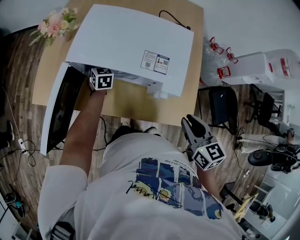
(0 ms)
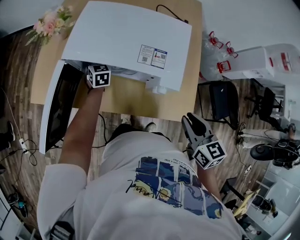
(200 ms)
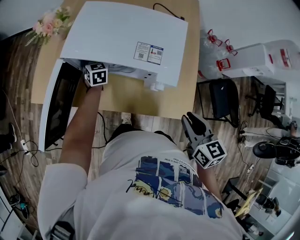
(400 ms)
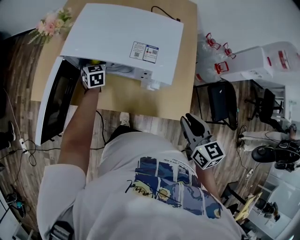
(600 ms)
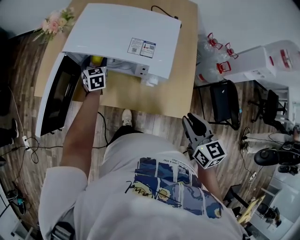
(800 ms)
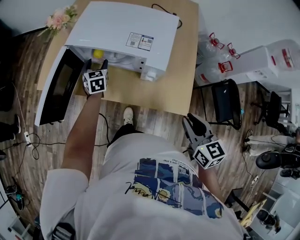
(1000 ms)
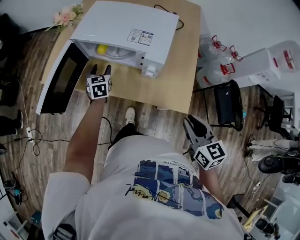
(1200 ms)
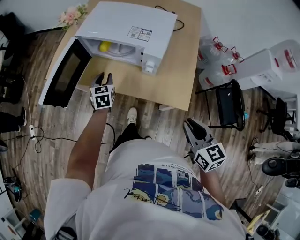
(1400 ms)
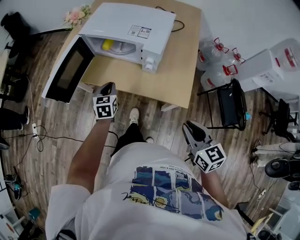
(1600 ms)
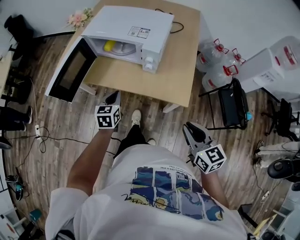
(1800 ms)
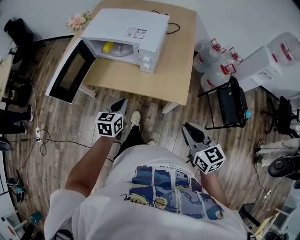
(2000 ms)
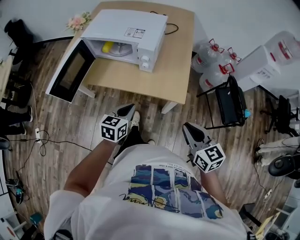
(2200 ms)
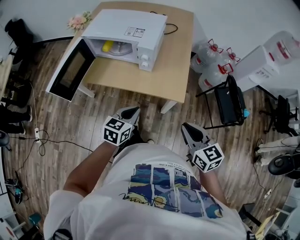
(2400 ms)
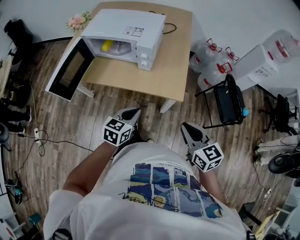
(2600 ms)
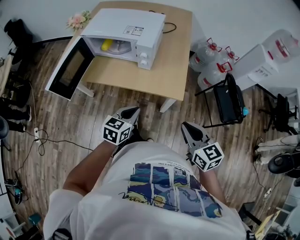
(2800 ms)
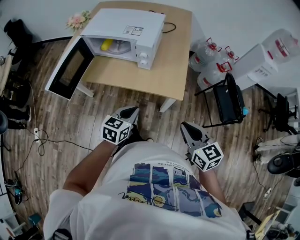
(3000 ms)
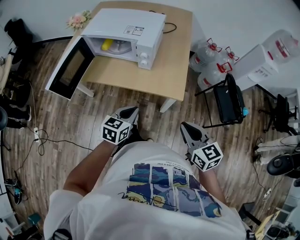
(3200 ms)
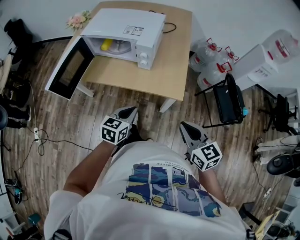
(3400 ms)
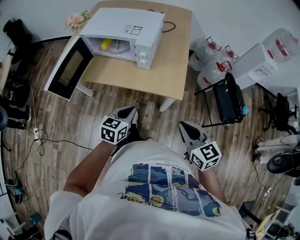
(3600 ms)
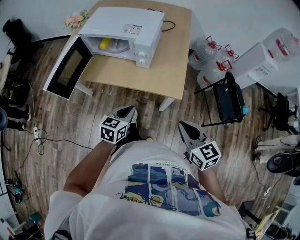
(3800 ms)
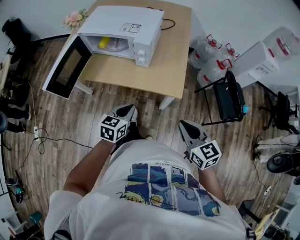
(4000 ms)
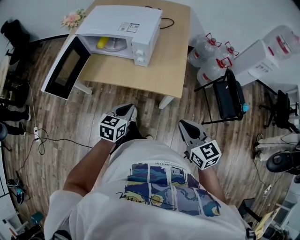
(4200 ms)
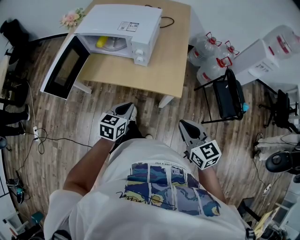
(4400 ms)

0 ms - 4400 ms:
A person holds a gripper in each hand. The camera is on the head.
0 ms - 1400 ms: Both grippers travel together backward, some 20 cm. The left gripper closes.
1400 ms - 3000 ms: The right gripper shifts about 10 cm backward; the left gripper moves backward and to the right, about 30 cm, swivels some 40 degrees, and closes up.
3000 ms - 4400 ms: The grippers make only small movements.

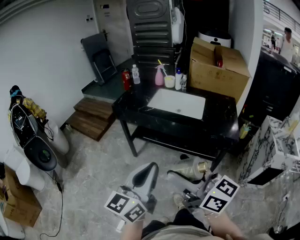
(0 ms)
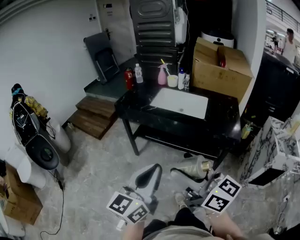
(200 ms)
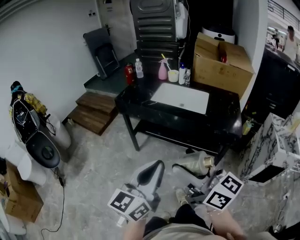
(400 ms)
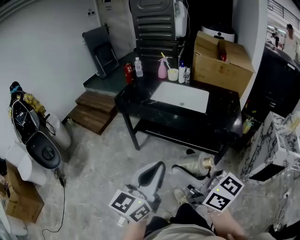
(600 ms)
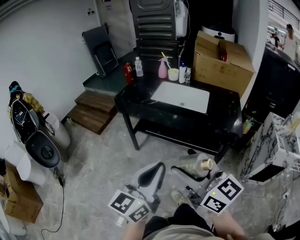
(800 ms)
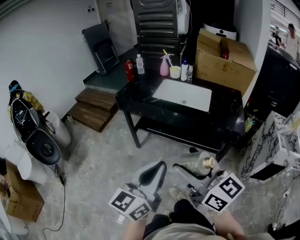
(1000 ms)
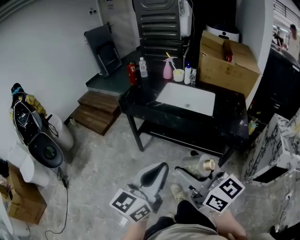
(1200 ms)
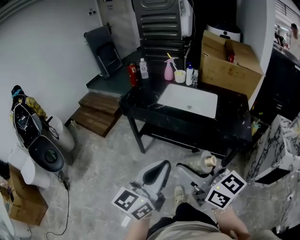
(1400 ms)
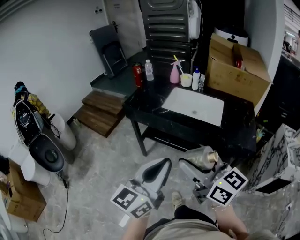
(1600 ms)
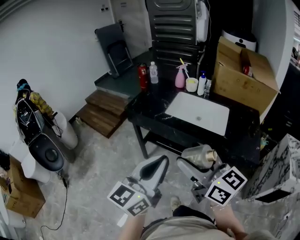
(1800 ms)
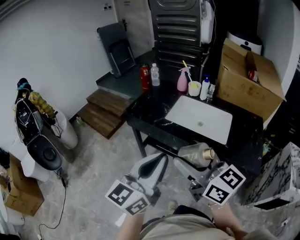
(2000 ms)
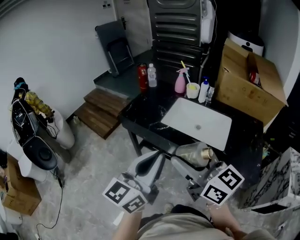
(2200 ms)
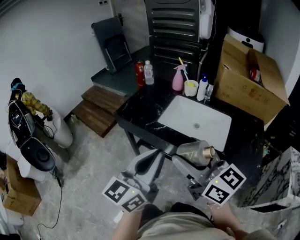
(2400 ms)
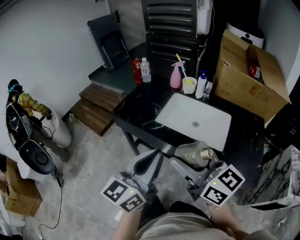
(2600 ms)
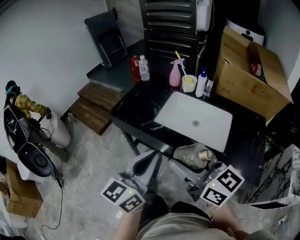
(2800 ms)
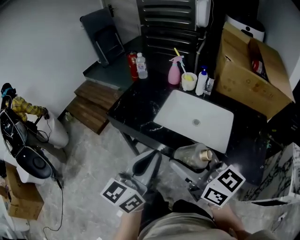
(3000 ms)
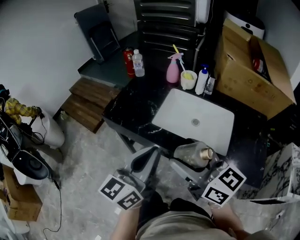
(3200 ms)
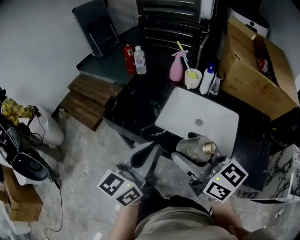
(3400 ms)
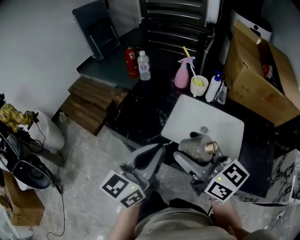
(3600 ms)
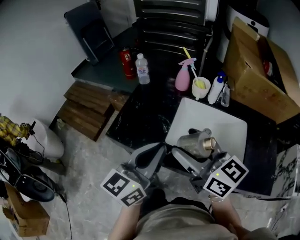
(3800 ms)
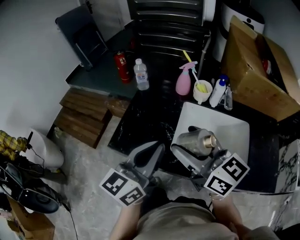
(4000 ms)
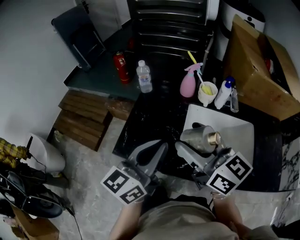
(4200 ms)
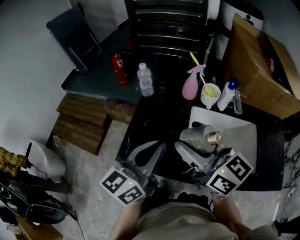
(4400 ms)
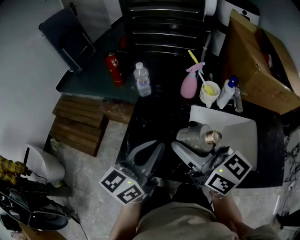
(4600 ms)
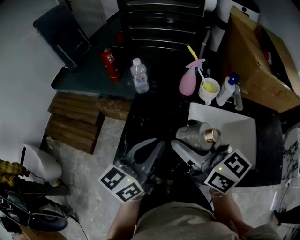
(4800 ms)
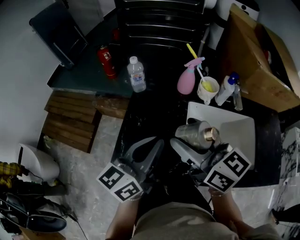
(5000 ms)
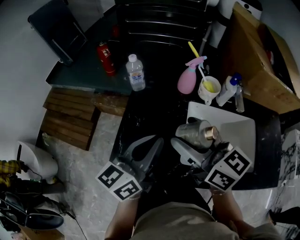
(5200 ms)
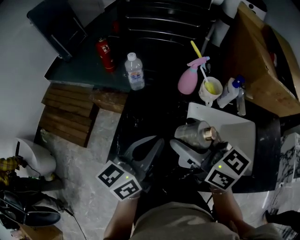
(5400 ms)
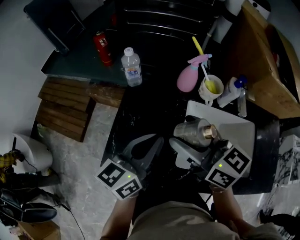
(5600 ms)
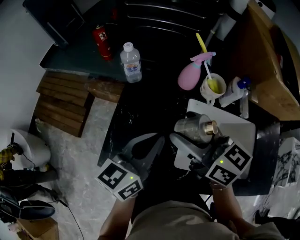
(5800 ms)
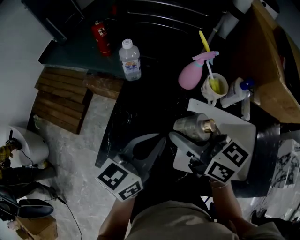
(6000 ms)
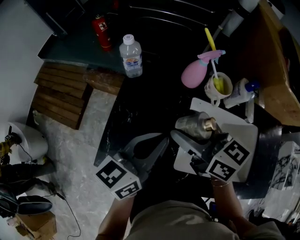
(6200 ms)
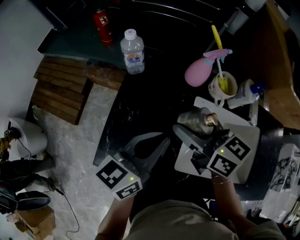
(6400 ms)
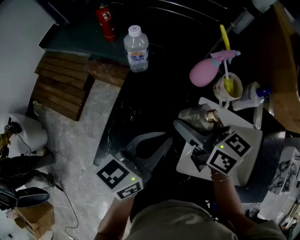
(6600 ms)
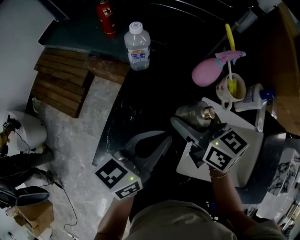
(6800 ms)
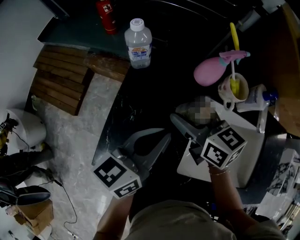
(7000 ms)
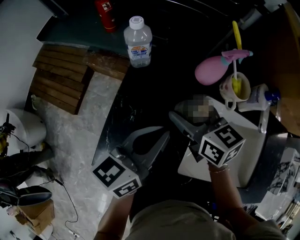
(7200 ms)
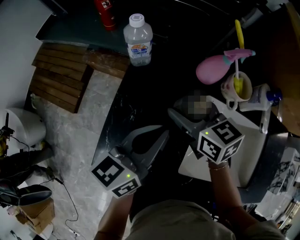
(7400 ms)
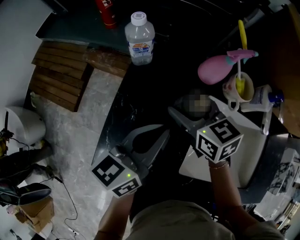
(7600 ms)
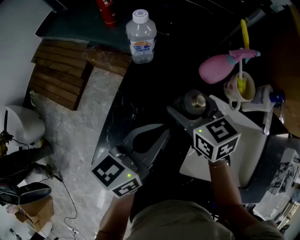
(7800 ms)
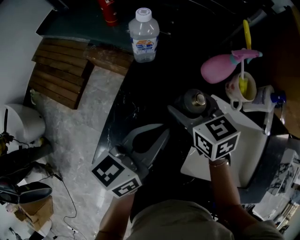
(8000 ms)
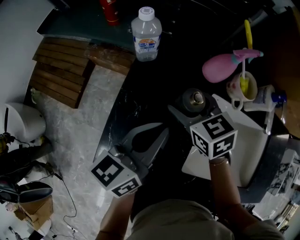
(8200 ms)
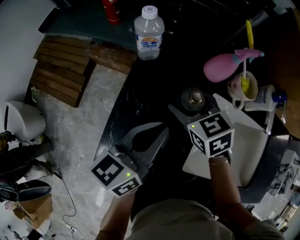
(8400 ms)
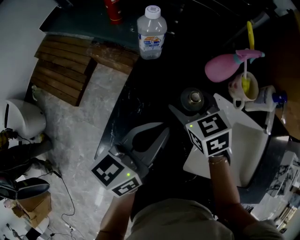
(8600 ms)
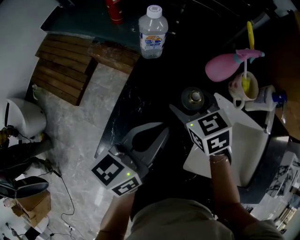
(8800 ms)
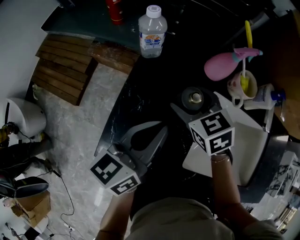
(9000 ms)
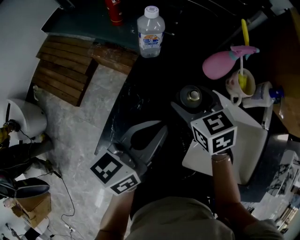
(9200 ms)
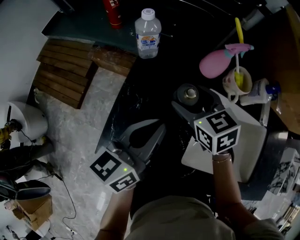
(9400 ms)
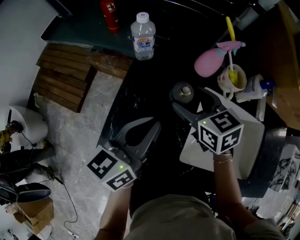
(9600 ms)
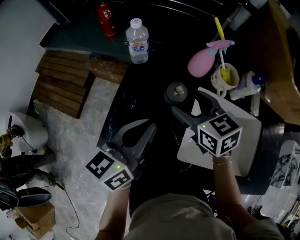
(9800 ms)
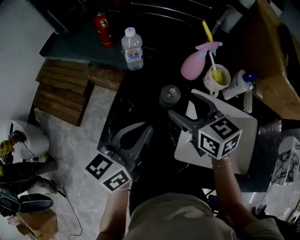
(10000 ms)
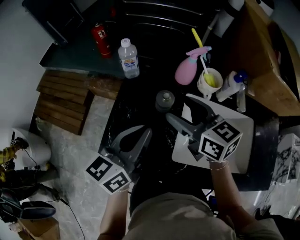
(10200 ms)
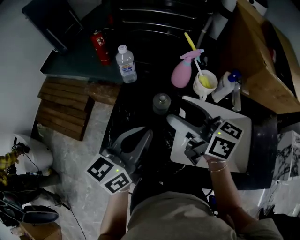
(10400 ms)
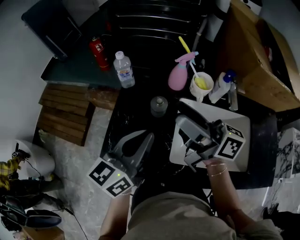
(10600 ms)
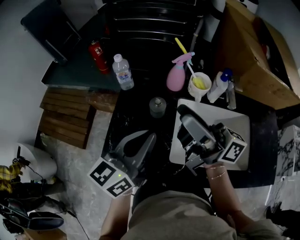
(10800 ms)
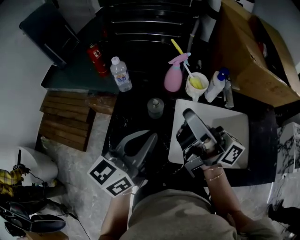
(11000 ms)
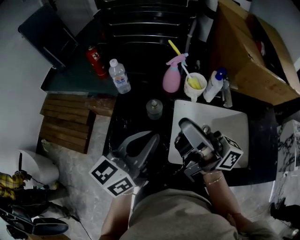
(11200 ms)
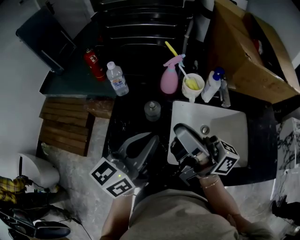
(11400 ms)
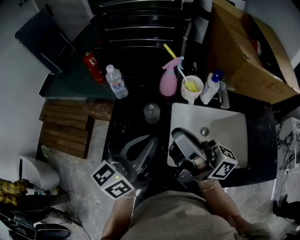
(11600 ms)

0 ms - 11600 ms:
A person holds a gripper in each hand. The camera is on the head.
0 ms - 1400 ms: The right gripper heads forward, covering approximately 10 cm.
1400 ms - 2800 ms: Both grippers move forward, approximately 30 cm.
2800 ms - 4400 ms: The two grippers go about 35 cm forward and to the left.
4400 ms - 5800 ms: The grippers both shift forward and downward by about 15 cm.
5800 ms - 7200 ms: The left gripper moves forward and downward, about 5 cm. The right gripper travels downward and forward by approximately 15 cm.
7200 ms - 8800 ms: The right gripper shifts roughly 5 cm downward, and turns by roughly 30 degrees.
8800 ms - 10200 ms: The left gripper shifts approximately 5 cm upward; the right gripper goes roughly 15 cm upward and backward, and turns by approximately 30 degrees.
10200 ms - 11600 ms: The right gripper moves upward and backward, about 15 cm, points its fingers about 50 degrees further upward, and closes, while the left gripper travels upward and to the right by approximately 5 cm.

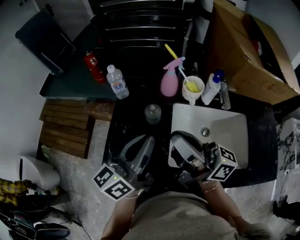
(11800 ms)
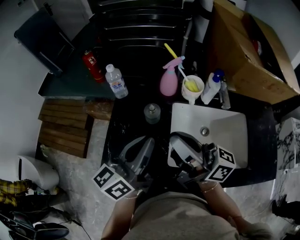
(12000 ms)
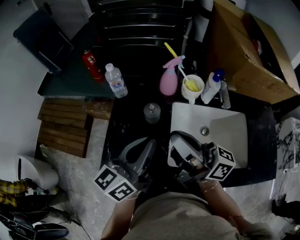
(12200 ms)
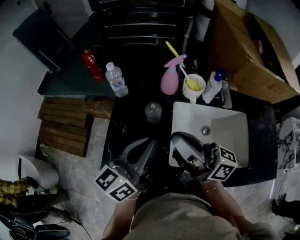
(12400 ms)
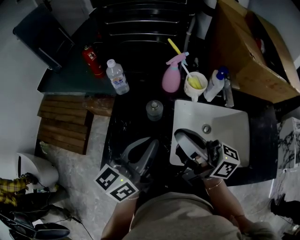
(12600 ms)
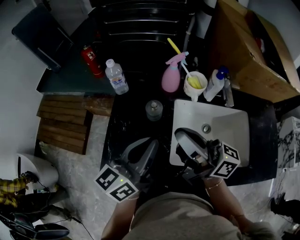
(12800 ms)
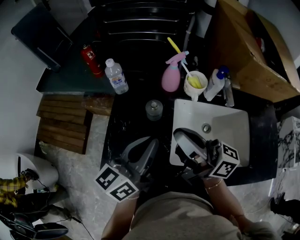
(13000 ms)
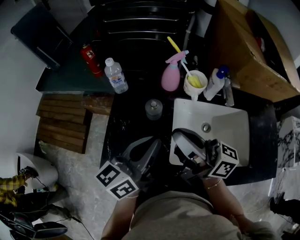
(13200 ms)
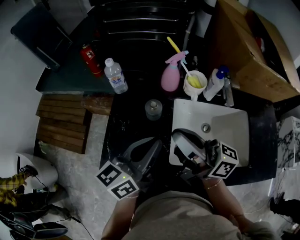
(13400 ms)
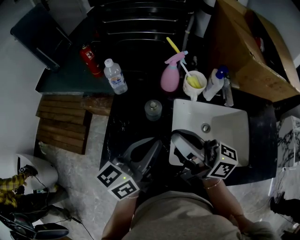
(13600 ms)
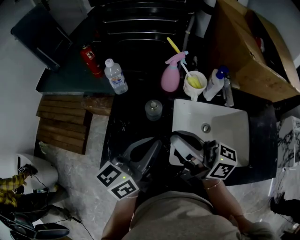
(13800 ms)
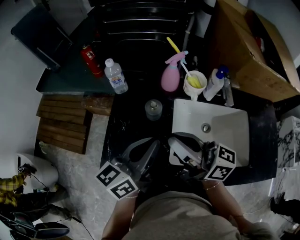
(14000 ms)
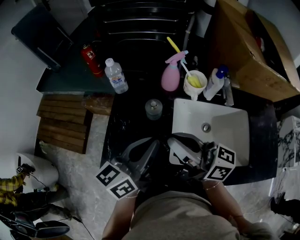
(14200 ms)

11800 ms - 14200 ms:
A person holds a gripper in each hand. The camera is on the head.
11800 ms - 14200 ms: The grippers stay close to where they were, moving slightly.

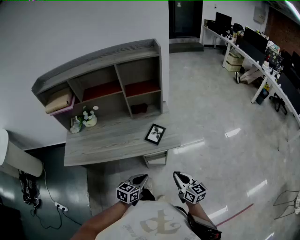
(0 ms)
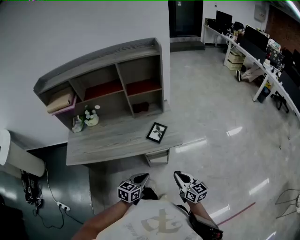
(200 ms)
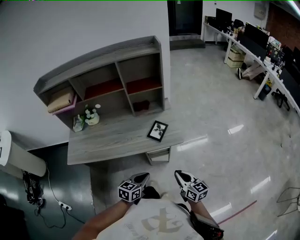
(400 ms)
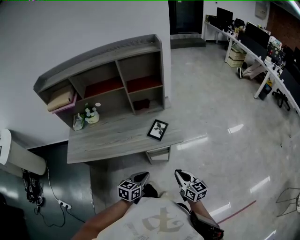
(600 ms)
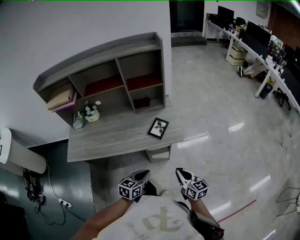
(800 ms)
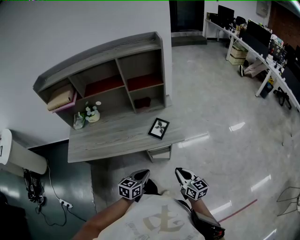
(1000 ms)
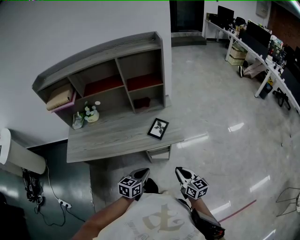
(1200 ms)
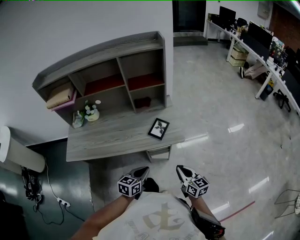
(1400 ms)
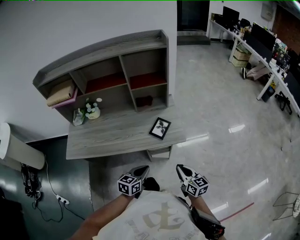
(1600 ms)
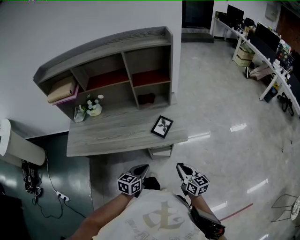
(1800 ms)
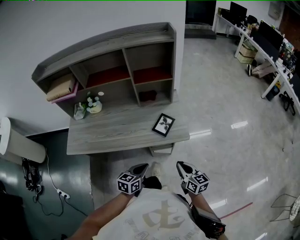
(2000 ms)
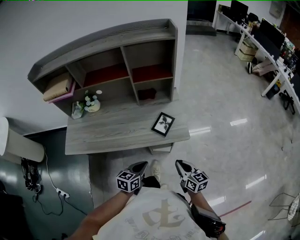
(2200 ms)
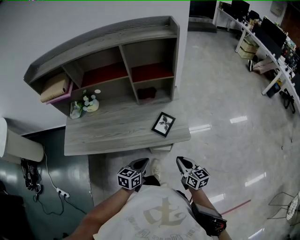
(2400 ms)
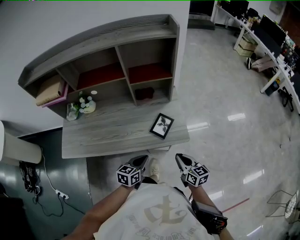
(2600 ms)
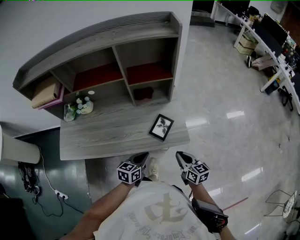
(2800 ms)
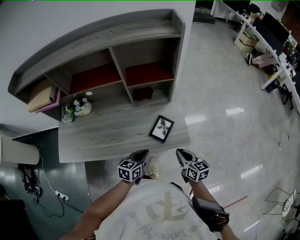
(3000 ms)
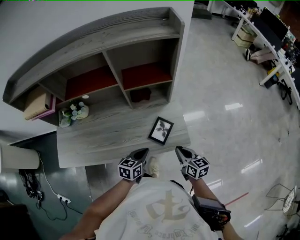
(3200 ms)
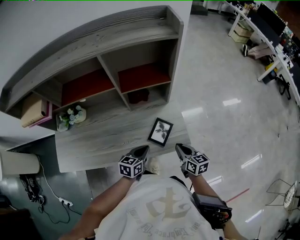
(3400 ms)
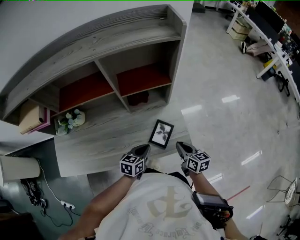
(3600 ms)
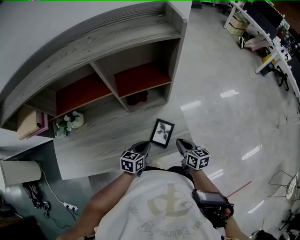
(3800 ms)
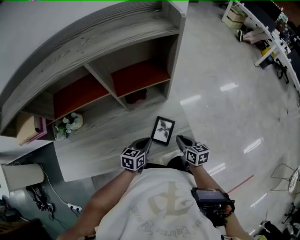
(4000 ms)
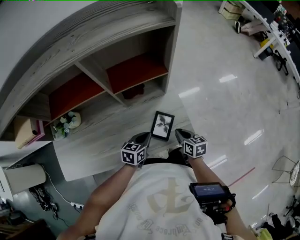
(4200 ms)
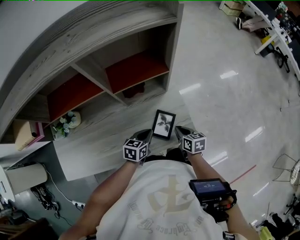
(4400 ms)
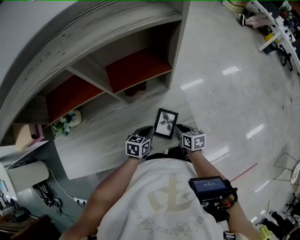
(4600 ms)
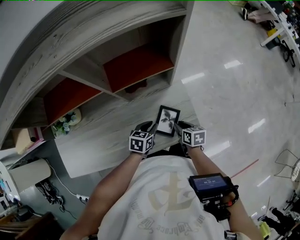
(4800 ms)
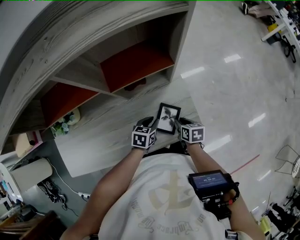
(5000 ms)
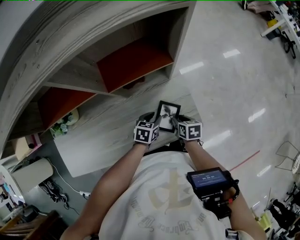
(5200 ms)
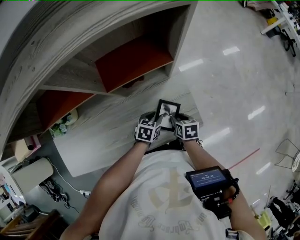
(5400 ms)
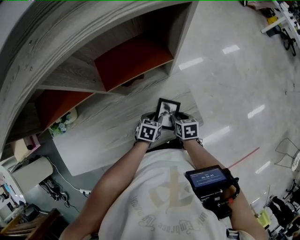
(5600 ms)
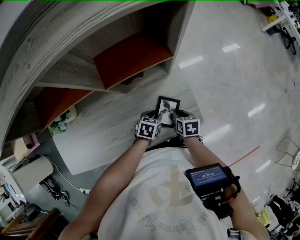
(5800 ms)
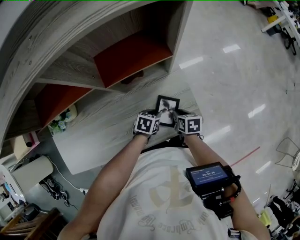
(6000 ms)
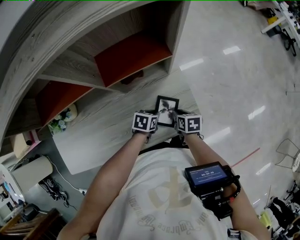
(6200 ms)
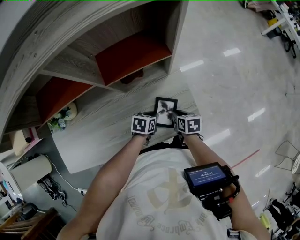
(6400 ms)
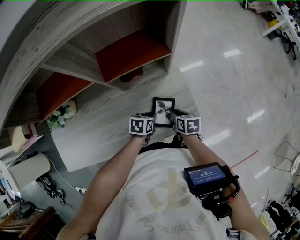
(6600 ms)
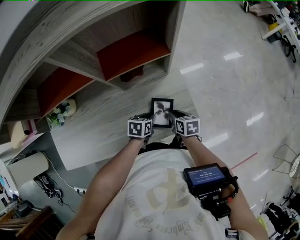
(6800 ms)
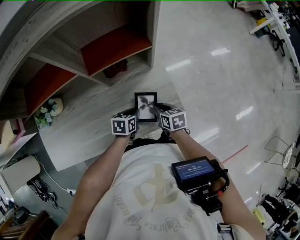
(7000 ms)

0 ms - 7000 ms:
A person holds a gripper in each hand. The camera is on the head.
0 ms - 1400 ms: The grippers stay close to where they were, moving slightly.
1400 ms - 2800 ms: Both grippers move forward, some 15 cm.
2800 ms - 4200 ms: The right gripper goes approximately 20 cm forward and downward, and changes its angle by roughly 20 degrees; the left gripper shifts roughly 20 cm forward.
4200 ms - 5600 ms: Both grippers move downward, roughly 10 cm. The left gripper turns by about 20 degrees, and opens its fingers; the right gripper rotates some 20 degrees, and opens up.
5600 ms - 7000 ms: The grippers move only a little.
